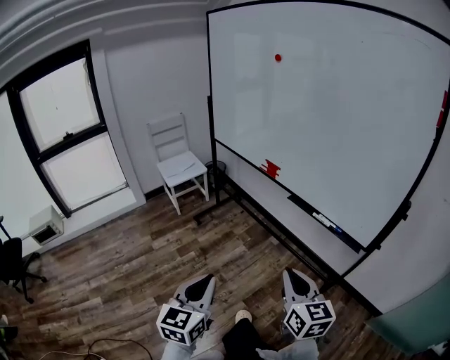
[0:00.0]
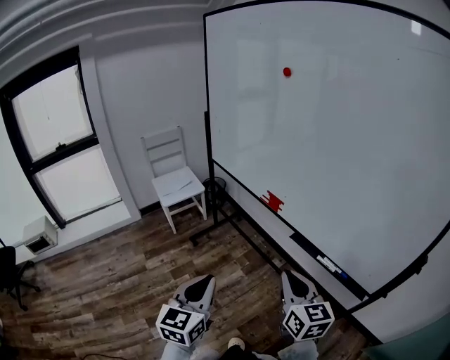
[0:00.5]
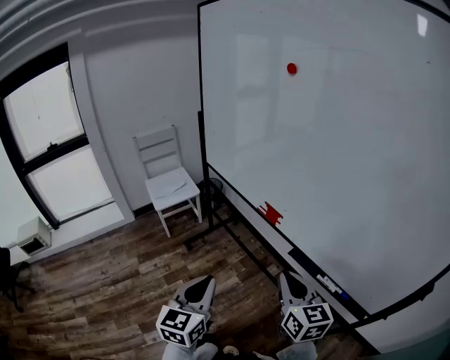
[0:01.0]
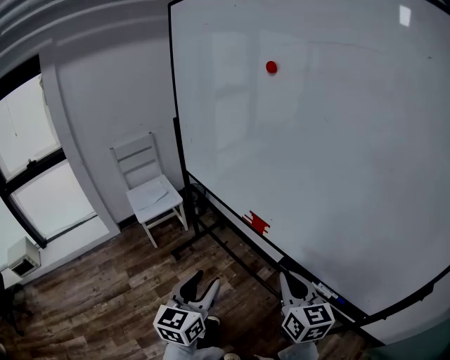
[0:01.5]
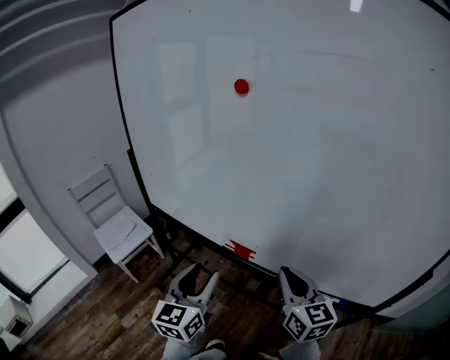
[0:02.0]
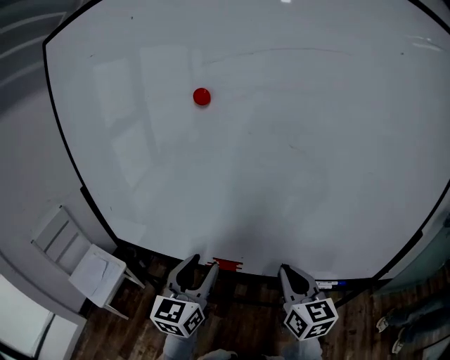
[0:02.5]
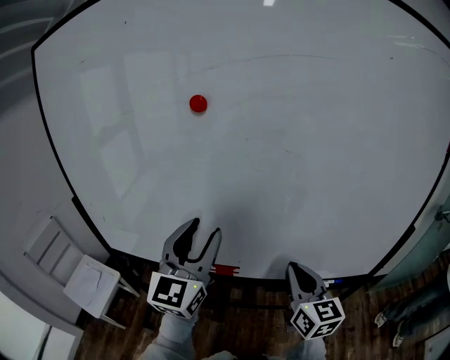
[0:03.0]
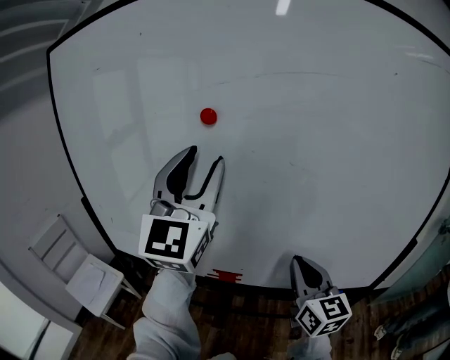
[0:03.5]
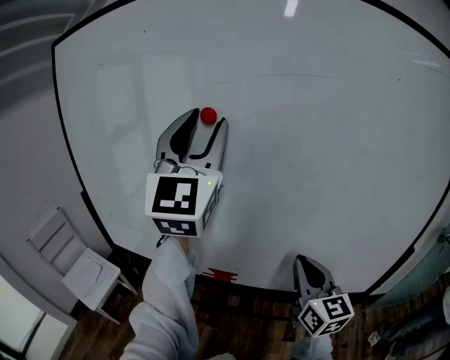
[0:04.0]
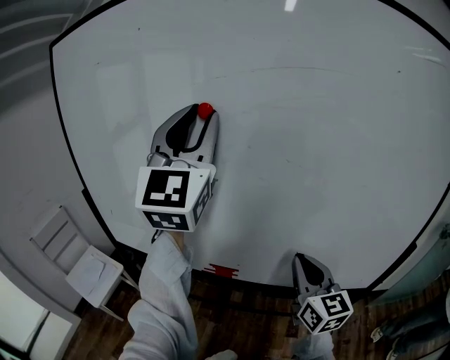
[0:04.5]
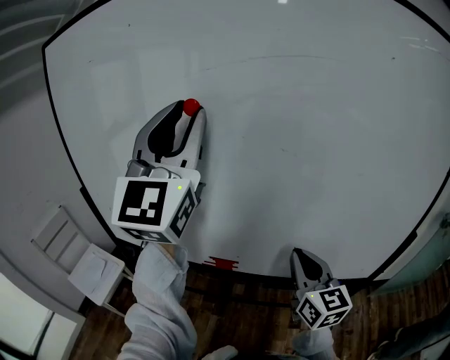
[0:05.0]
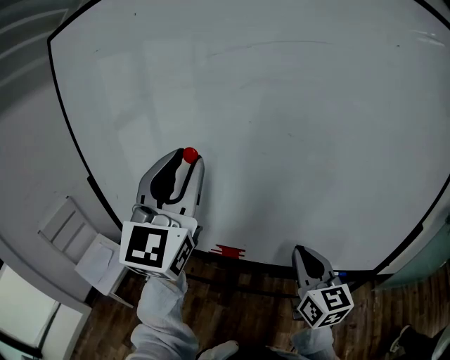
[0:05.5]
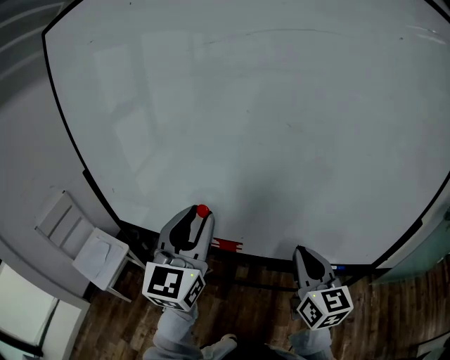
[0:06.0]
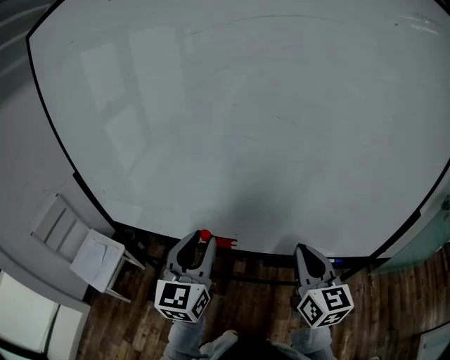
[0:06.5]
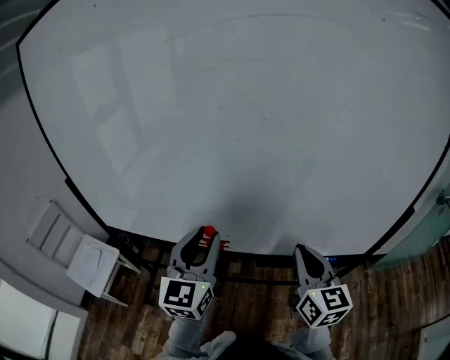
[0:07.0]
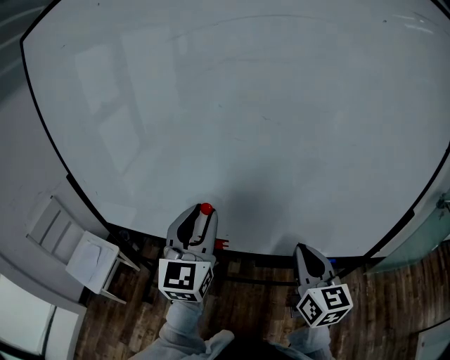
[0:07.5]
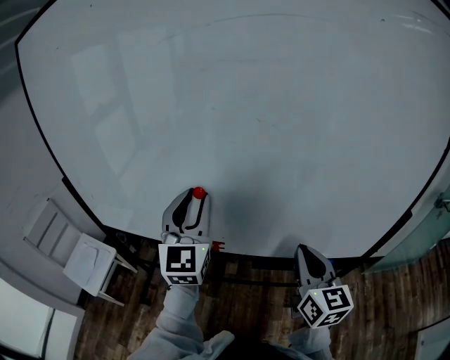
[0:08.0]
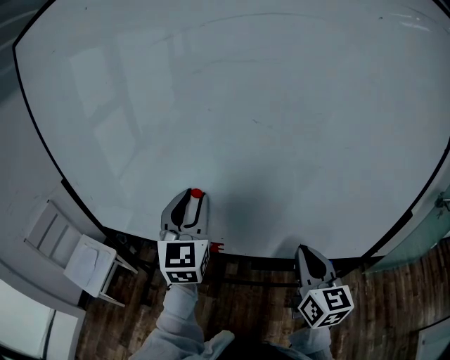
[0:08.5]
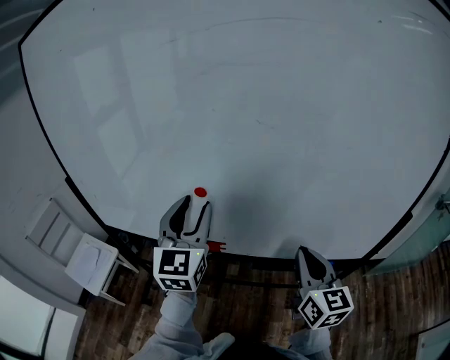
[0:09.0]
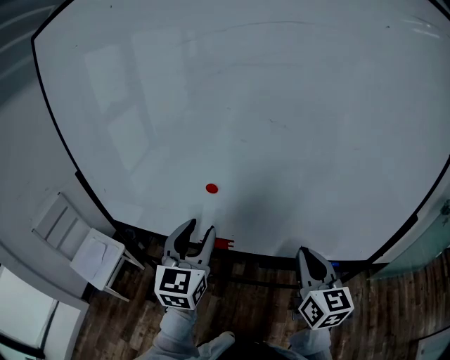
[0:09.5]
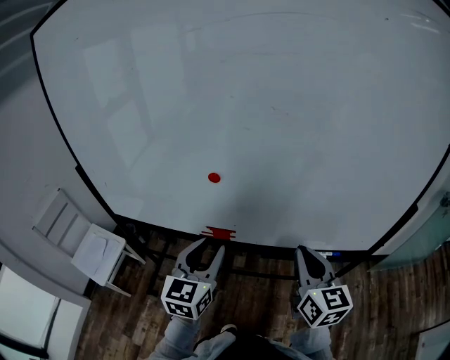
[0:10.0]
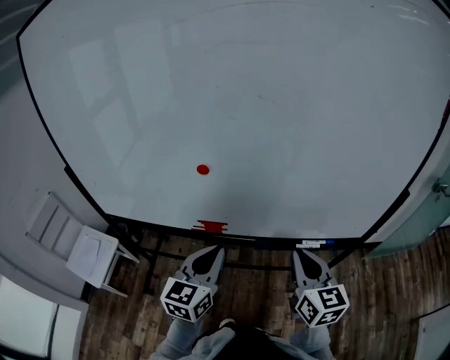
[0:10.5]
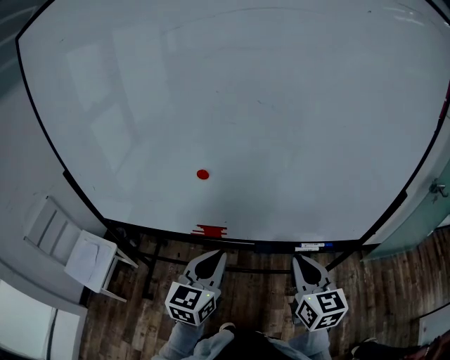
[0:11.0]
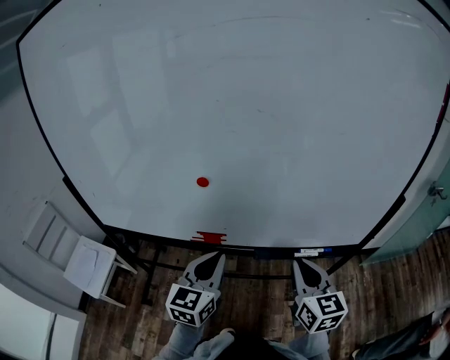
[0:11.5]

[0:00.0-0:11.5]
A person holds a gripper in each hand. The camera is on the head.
0.0 to 2.0 s: Both grippers are carried forward, about 50 cm. The left gripper turns by about 20 degrees, and opens its fingers.
2.0 to 4.0 s: The left gripper is displaced upward and forward by roughly 40 cm, and points its fingers some 30 degrees further upward, while the right gripper travels upward by roughly 10 cm, and rotates about 20 degrees.
4.0 to 6.0 s: The left gripper is displaced downward by some 25 cm, and swivels approximately 30 degrees. Meanwhile the right gripper ends up approximately 5 cm from where it was.
6.0 to 7.5 s: The left gripper changes place by roughly 5 cm.
7.5 to 9.5 s: The left gripper ends up roughly 5 cm from where it was.
9.5 to 11.5 s: The right gripper moves some 5 cm, while the left gripper travels downward and to the right by approximately 10 cm, and closes up.

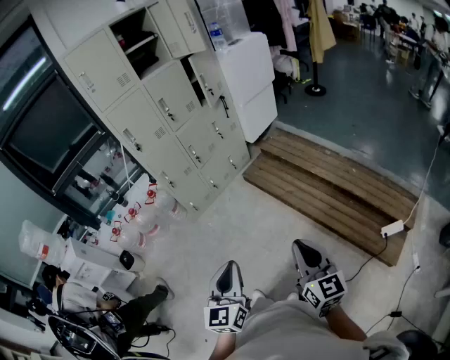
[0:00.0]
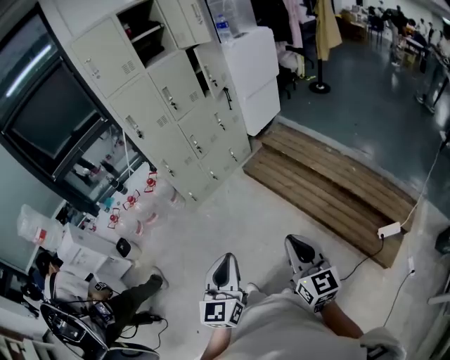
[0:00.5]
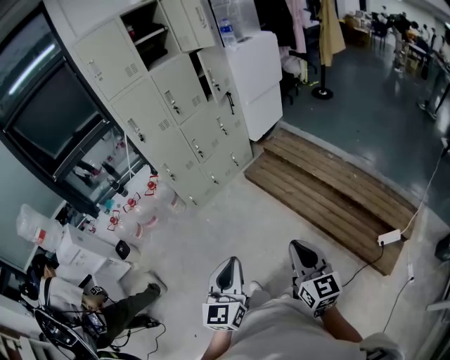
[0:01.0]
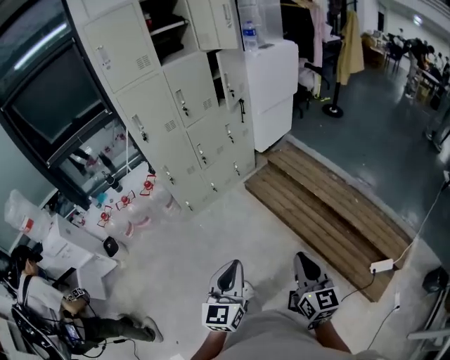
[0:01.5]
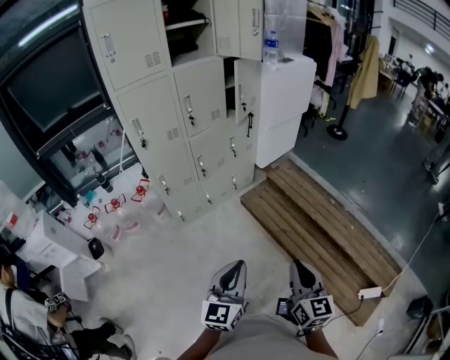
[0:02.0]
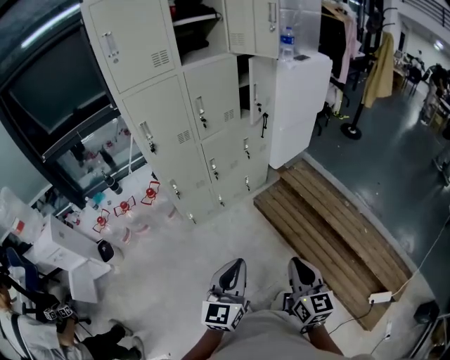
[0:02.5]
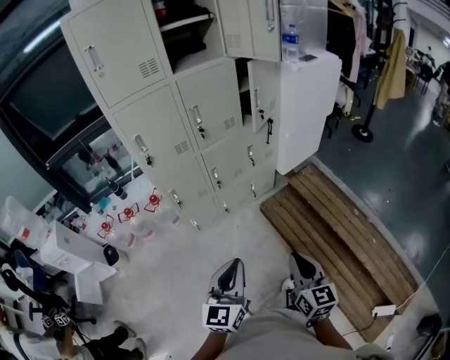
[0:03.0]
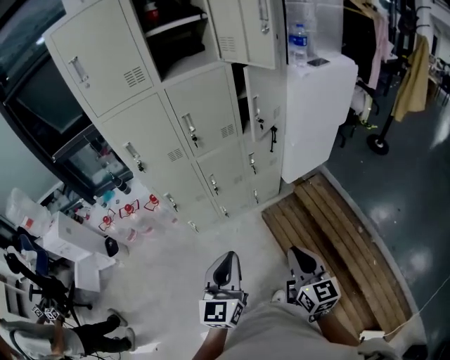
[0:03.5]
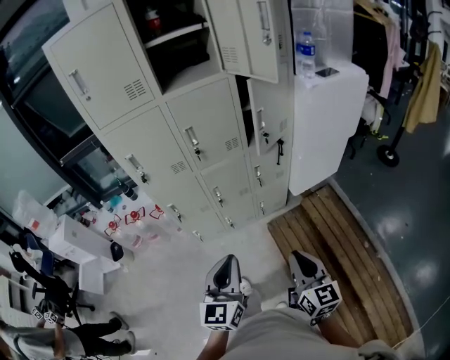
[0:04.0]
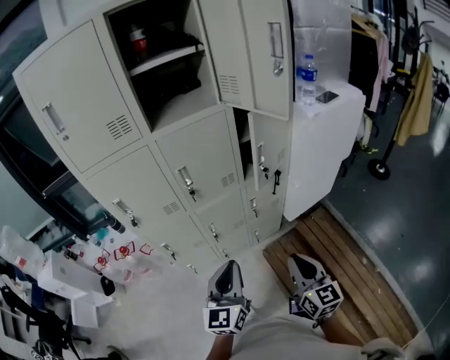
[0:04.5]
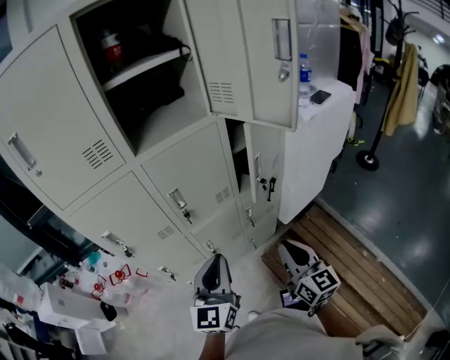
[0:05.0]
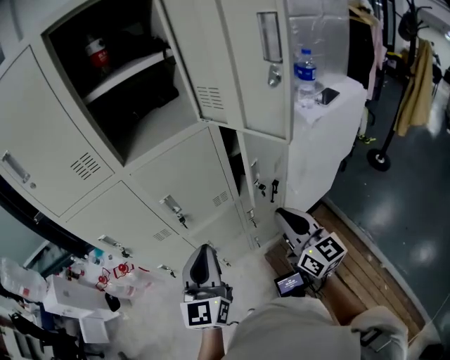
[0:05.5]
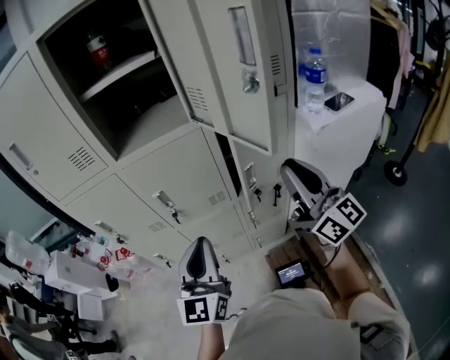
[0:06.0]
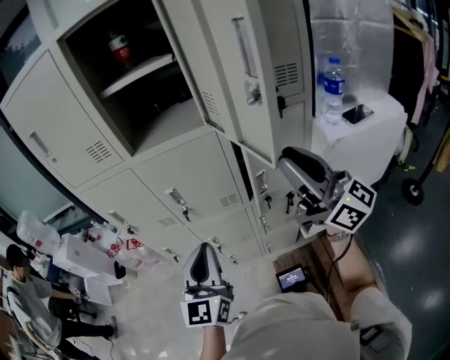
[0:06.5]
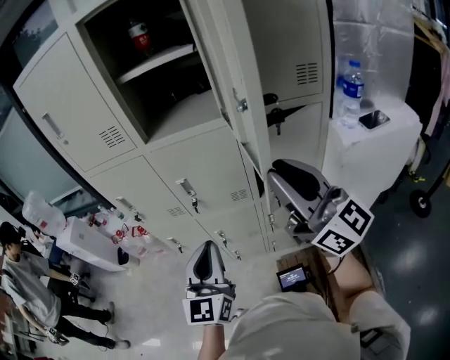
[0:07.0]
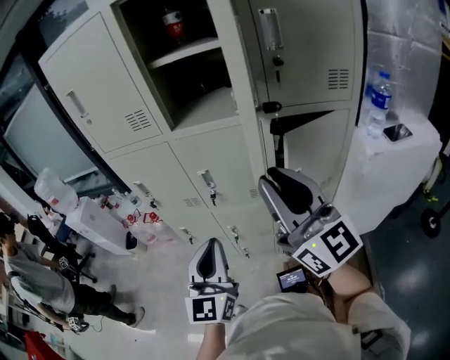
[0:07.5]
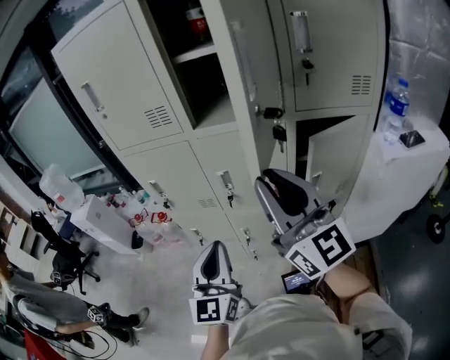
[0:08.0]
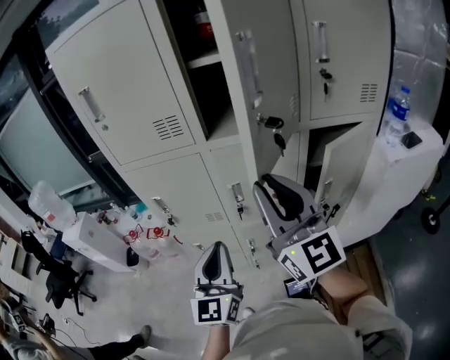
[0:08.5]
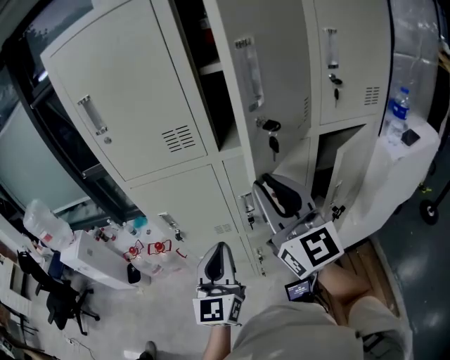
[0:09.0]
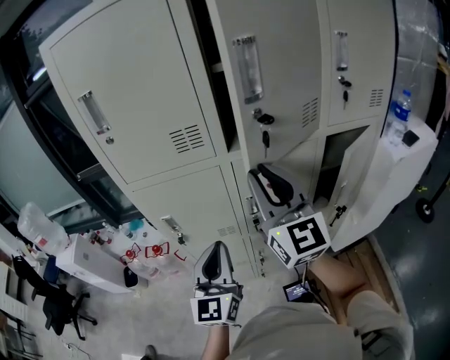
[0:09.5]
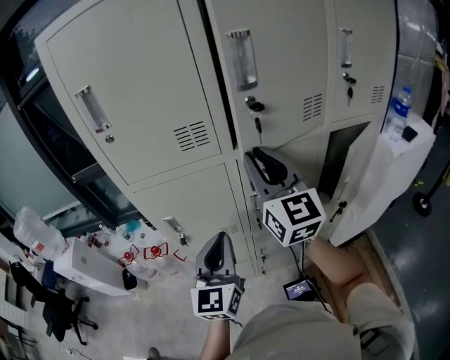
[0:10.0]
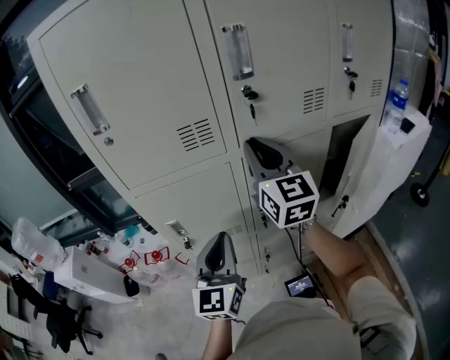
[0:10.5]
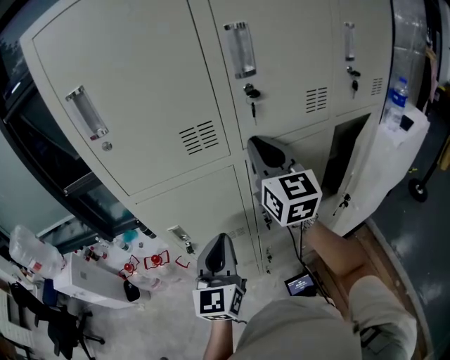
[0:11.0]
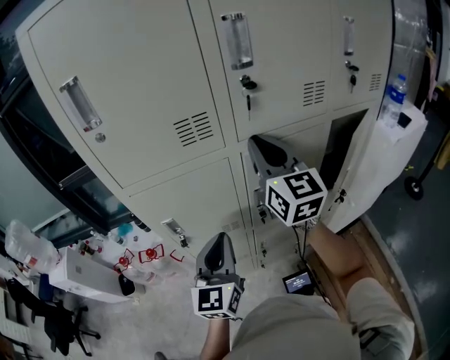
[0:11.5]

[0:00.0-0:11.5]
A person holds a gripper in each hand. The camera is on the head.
0.0 to 2.0 s: Both grippers move forward, some 20 cm.
2.0 to 4.0 s: Both grippers move forward, approximately 35 cm. The left gripper changes its angle by approximately 30 degrees. Meanwhile the right gripper swivels approximately 20 degrees.
4.0 to 6.0 s: The left gripper travels forward by roughly 30 cm. Meanwhile the right gripper is displaced forward and upward by some 50 cm, and tips its fingers upward by about 30 degrees.
6.0 to 7.5 s: The right gripper is displaced to the left and upward by about 15 cm; the left gripper shifts by some 5 cm.
7.5 to 9.5 s: Both grippers travel together to the left and forward, roughly 25 cm. The right gripper swivels approximately 30 degrees.
9.5 to 11.5 s: The left gripper shifts by about 5 cm, while the right gripper is displaced forward by about 10 cm.

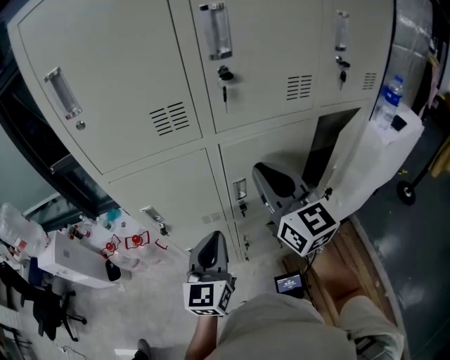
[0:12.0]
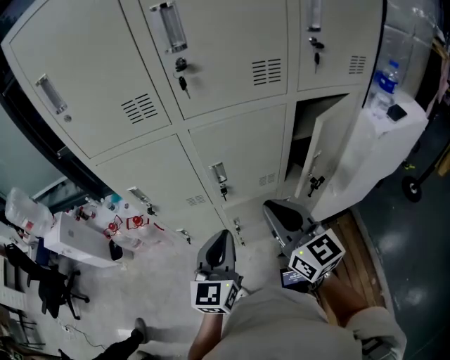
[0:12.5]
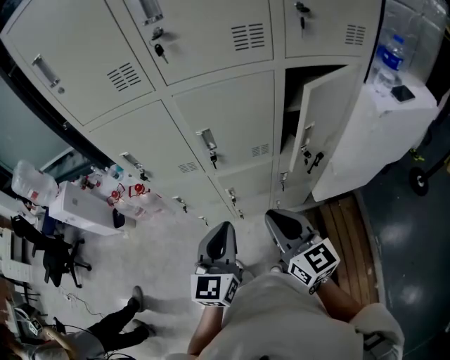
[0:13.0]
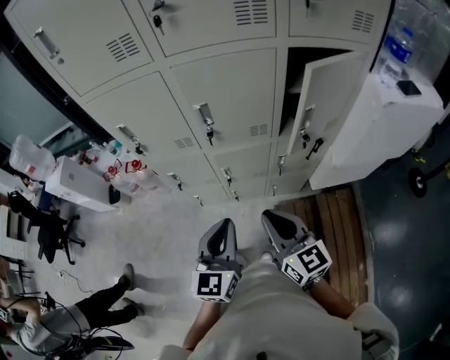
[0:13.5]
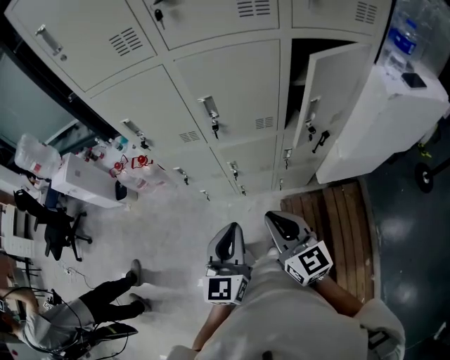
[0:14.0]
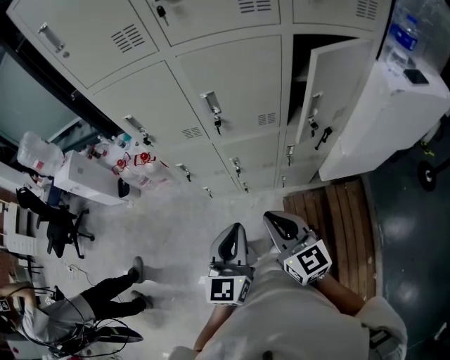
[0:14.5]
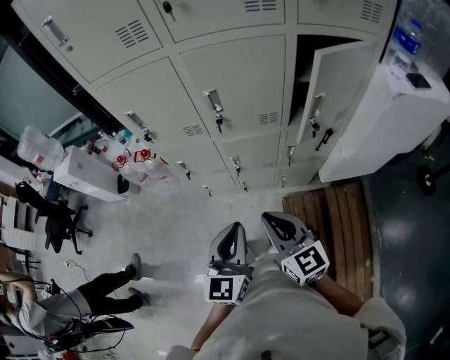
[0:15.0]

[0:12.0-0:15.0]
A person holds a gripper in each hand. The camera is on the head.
12.0 to 13.5 s: The left gripper heads backward, to the right and downward, covering approximately 25 cm; the right gripper shifts roughly 35 cm backward, downward and to the right, and rotates approximately 20 degrees.
13.5 to 15.0 s: The grippers move only a little.

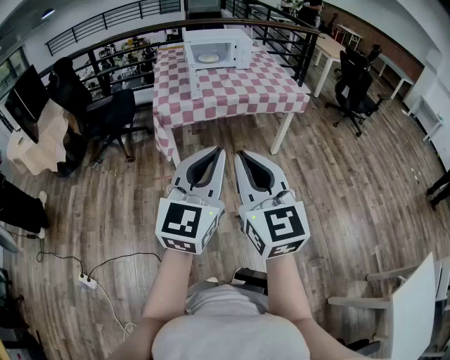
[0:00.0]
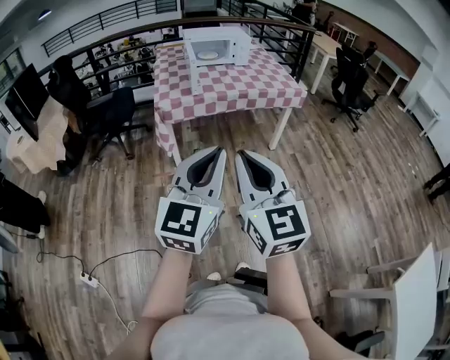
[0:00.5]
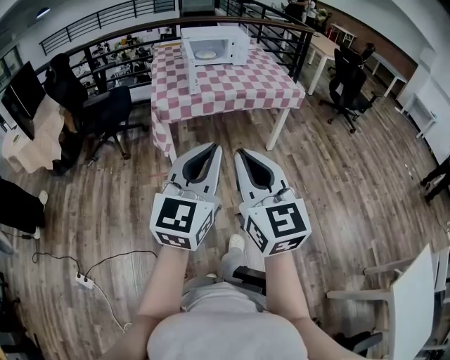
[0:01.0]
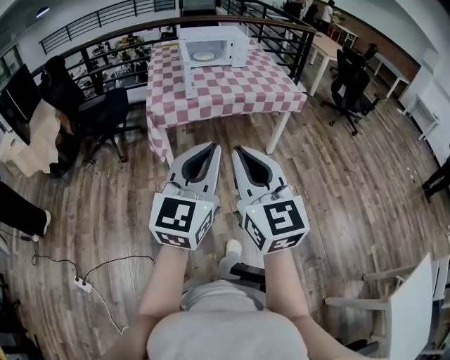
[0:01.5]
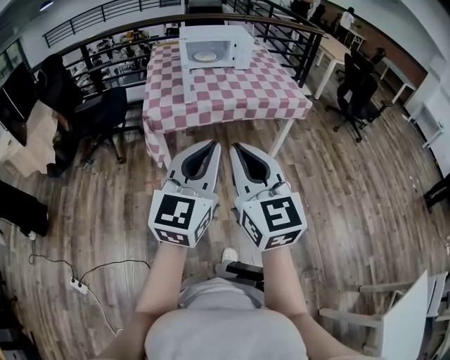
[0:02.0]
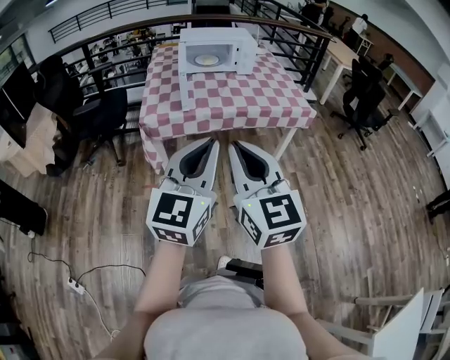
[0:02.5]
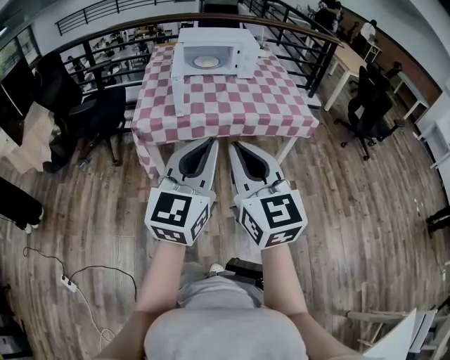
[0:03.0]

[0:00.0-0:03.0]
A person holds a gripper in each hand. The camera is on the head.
0.0 to 1.5 s: The grippers move only a little.
1.5 to 3.0 s: The two grippers go approximately 20 cm forward.
